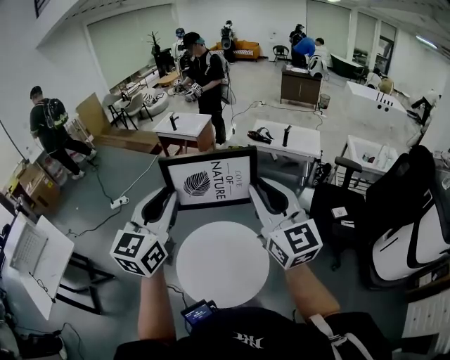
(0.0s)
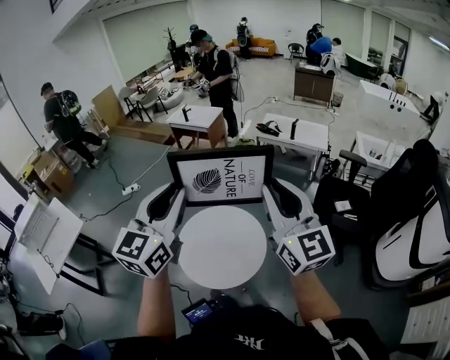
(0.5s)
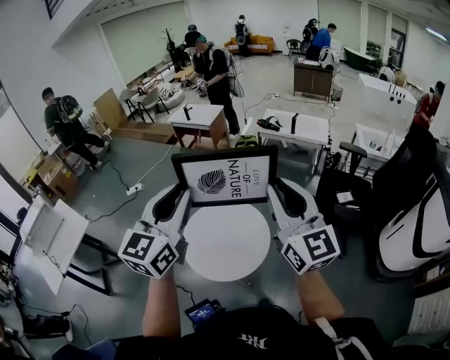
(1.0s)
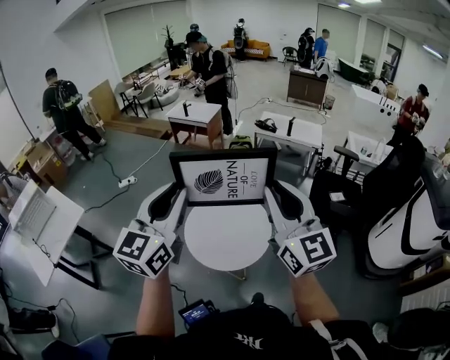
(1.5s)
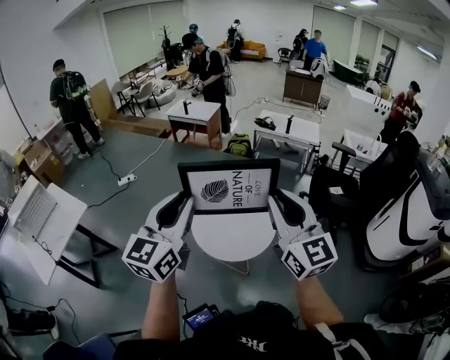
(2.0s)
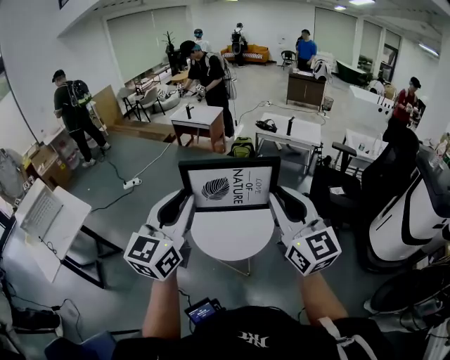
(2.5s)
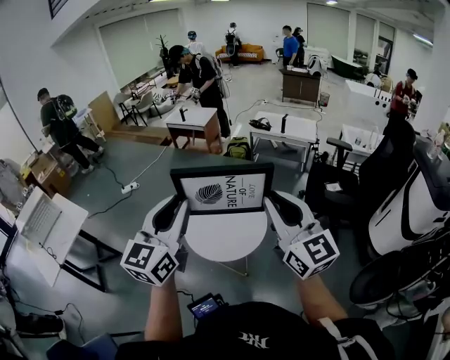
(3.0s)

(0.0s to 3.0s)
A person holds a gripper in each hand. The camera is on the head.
0.0s - 1.5s: Both grippers travel together backward, approximately 20 cm.
1.5s - 3.0s: The left gripper moves backward, roughly 10 cm. Meanwhile the right gripper moves backward and to the right, about 10 cm.

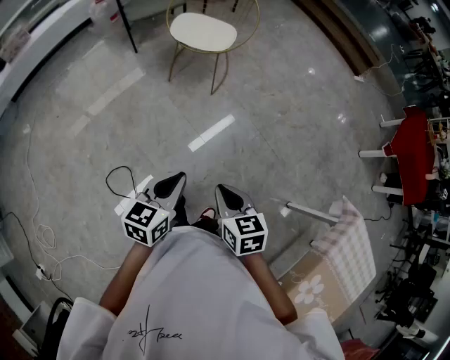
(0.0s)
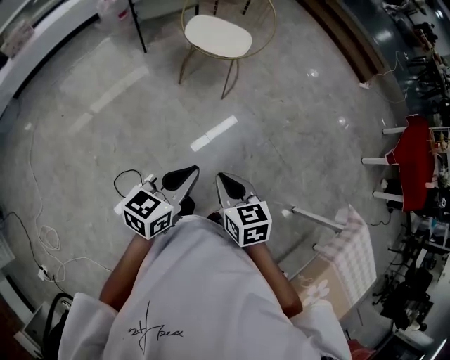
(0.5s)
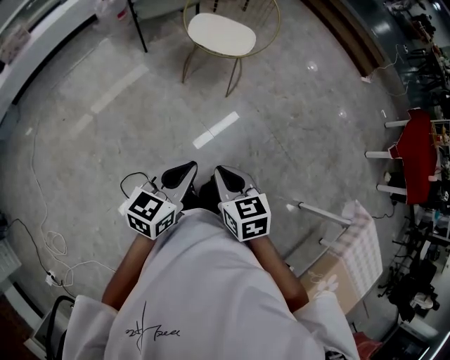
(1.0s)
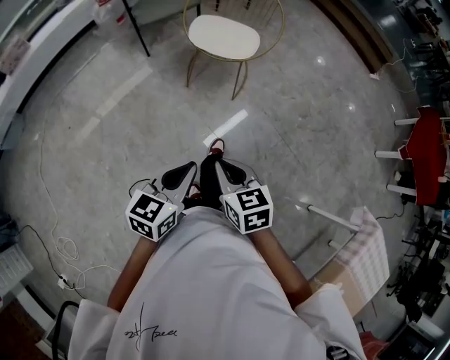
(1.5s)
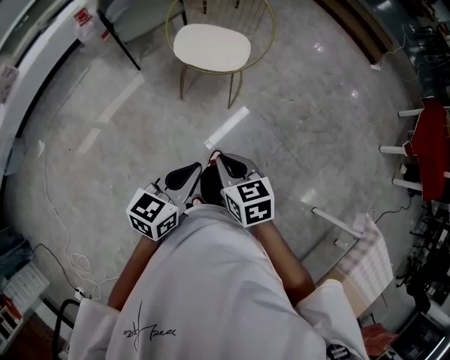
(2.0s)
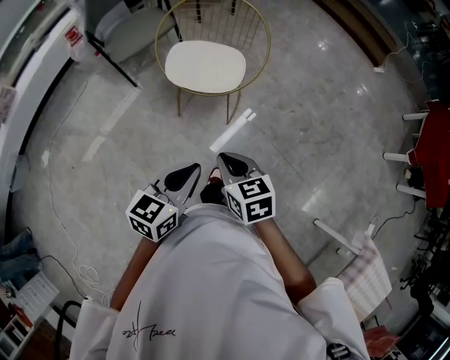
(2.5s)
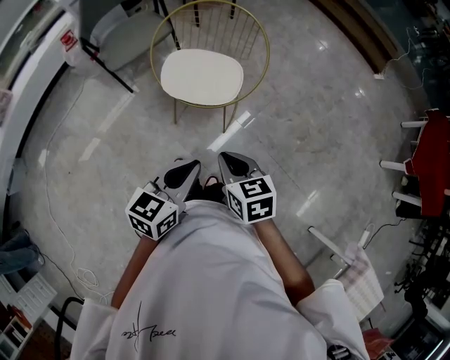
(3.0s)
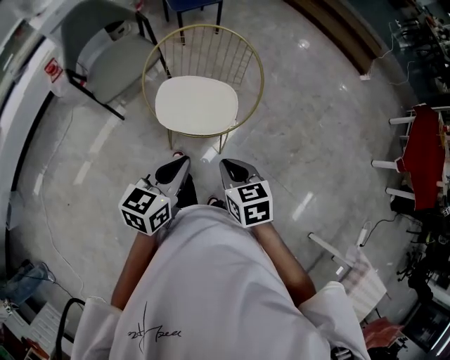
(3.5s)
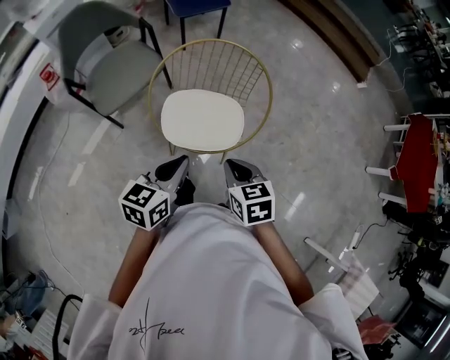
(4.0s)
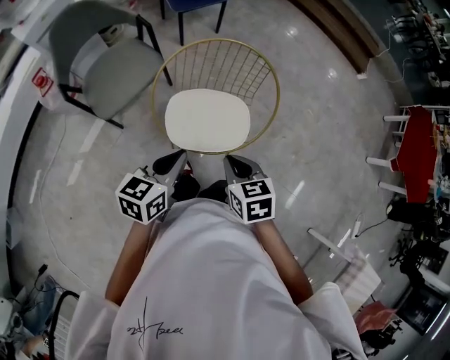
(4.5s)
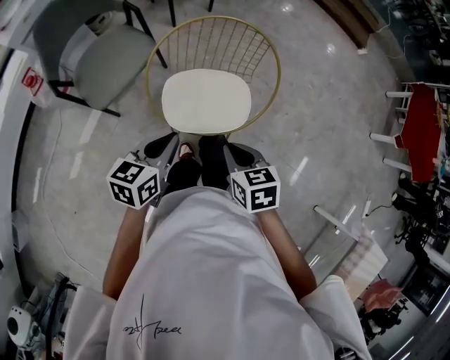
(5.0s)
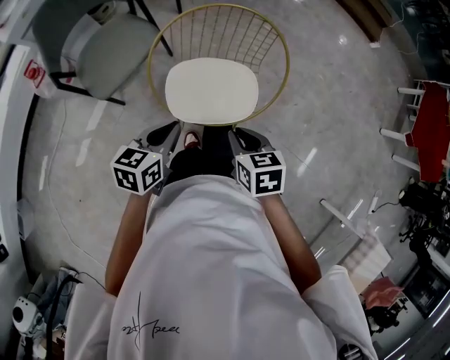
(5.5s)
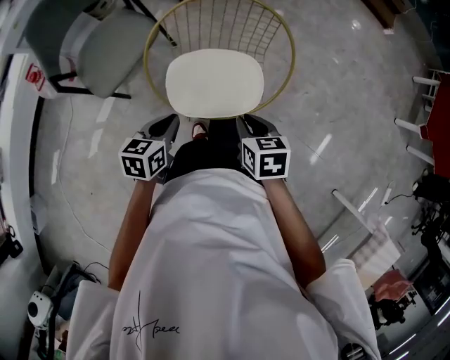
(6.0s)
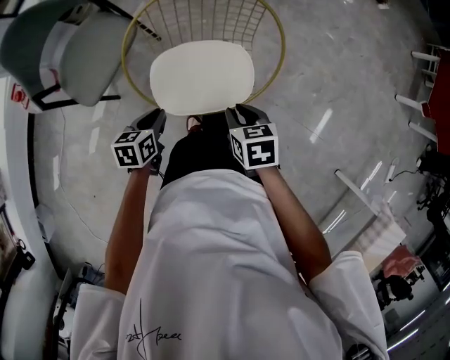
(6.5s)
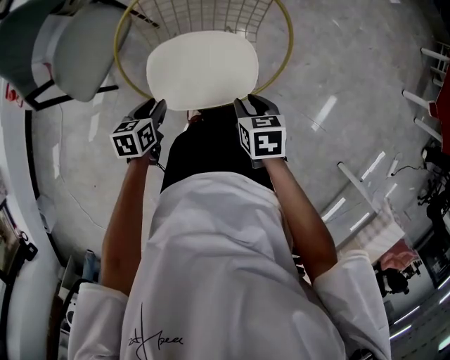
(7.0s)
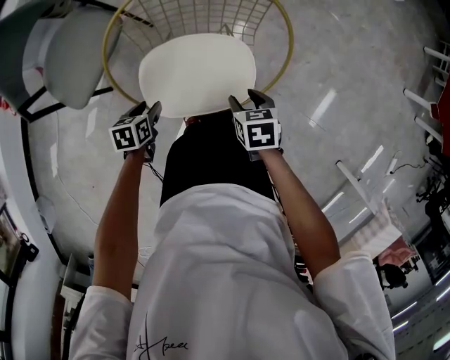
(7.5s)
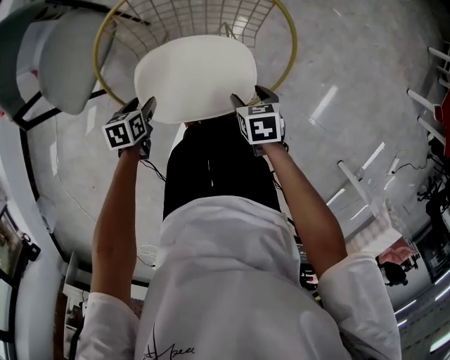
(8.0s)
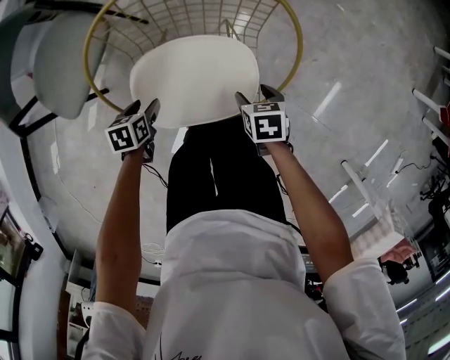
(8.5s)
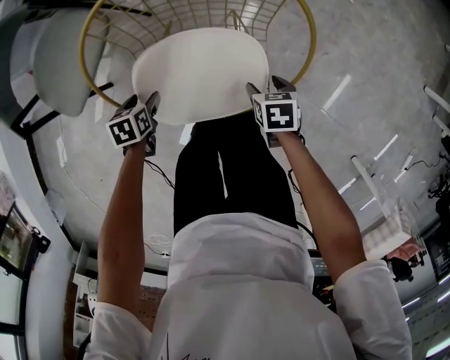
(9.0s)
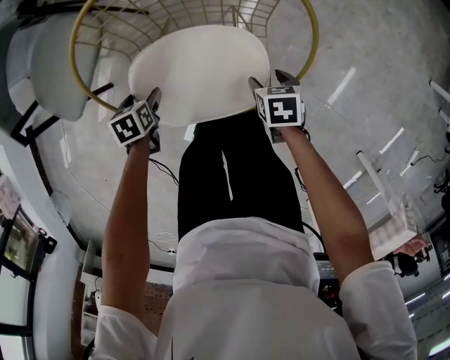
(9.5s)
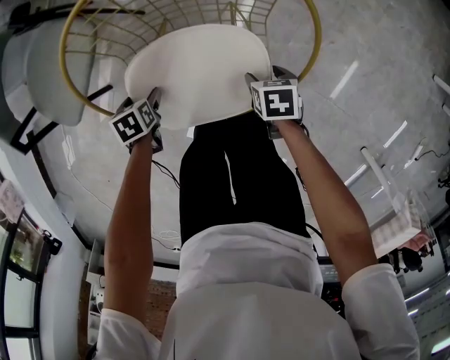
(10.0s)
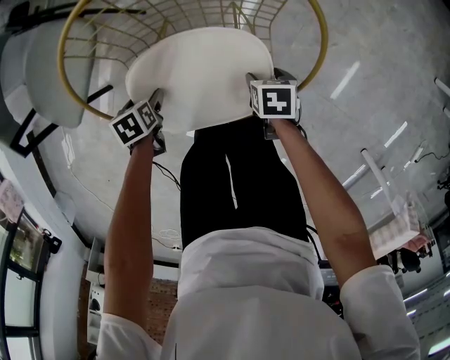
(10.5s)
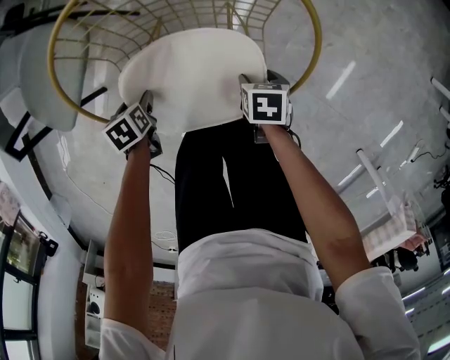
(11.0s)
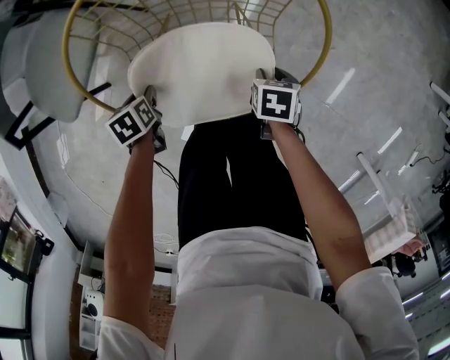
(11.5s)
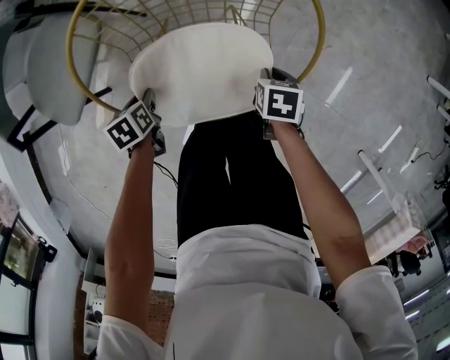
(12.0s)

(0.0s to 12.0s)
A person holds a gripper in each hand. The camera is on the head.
0.0s - 2.0s: The left gripper goes roughly 25 cm forward. The right gripper is displaced forward and to the left by roughly 35 cm.
2.0s - 4.0s: The two grippers travel together, forward, roughly 50 cm.
4.0s - 6.0s: The left gripper shifts about 20 cm downward, forward and to the left; the right gripper is displaced downward and forward by some 15 cm.
6.0s - 8.0s: Both grippers move downward and forward, roughly 25 cm. The right gripper opens, while the left gripper rotates roughly 30 degrees, and opens.
8.0s - 10.0s: The two grippers go about 10 cm downward. The left gripper opens up.
10.0s - 12.0s: The left gripper closes; the right gripper closes up.

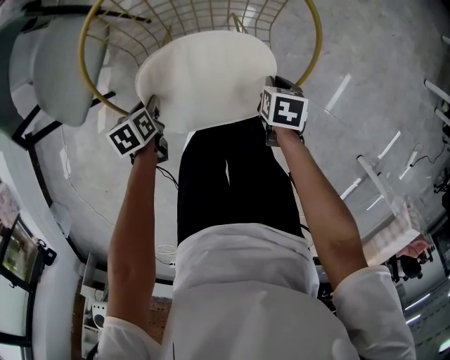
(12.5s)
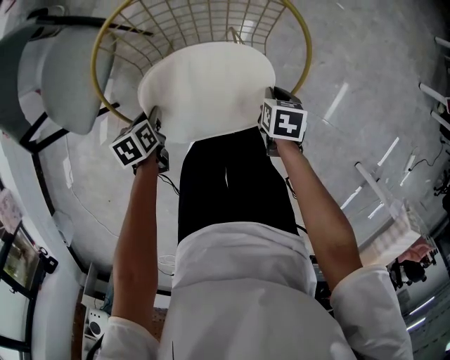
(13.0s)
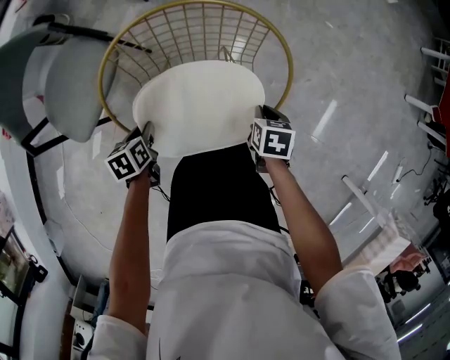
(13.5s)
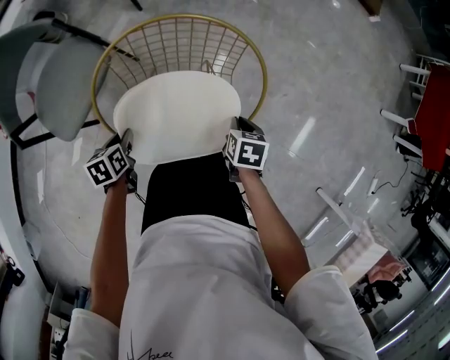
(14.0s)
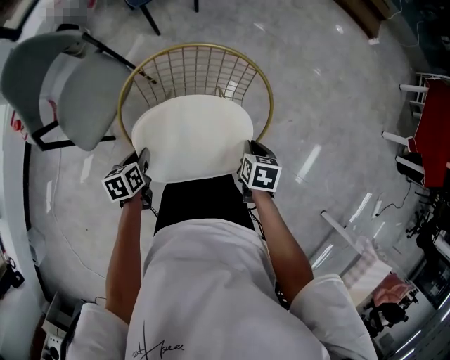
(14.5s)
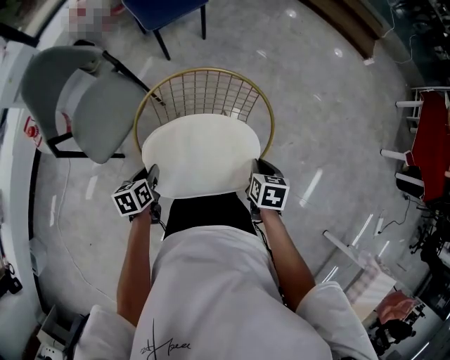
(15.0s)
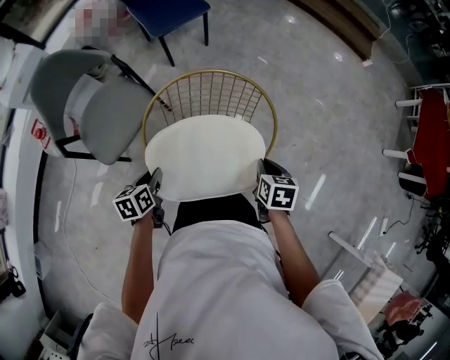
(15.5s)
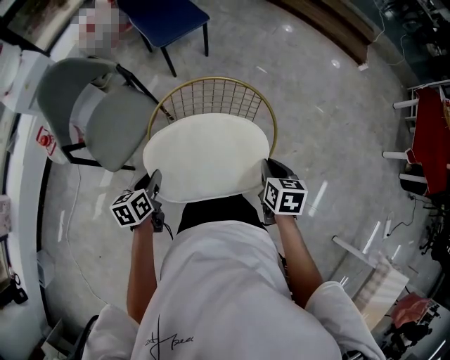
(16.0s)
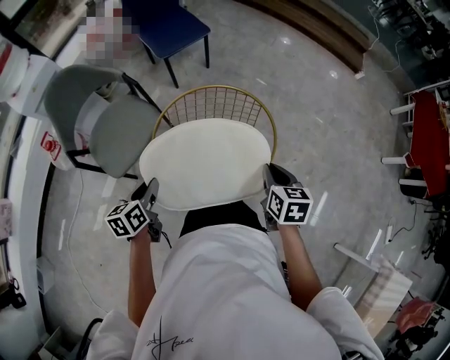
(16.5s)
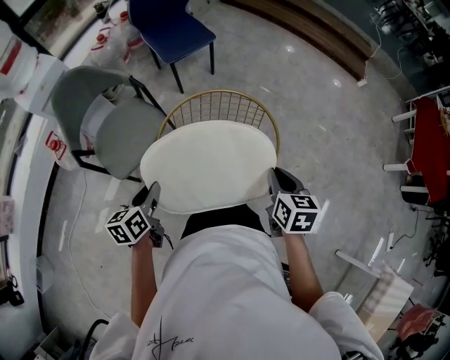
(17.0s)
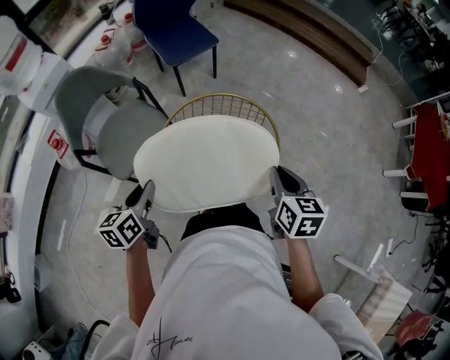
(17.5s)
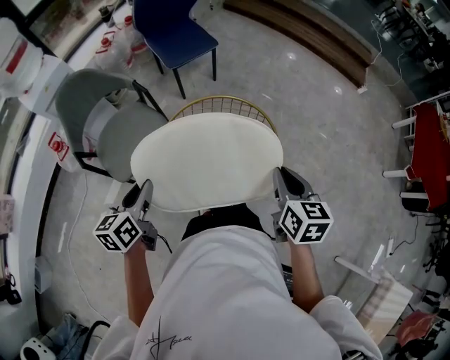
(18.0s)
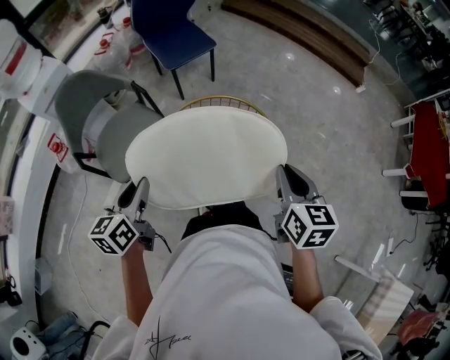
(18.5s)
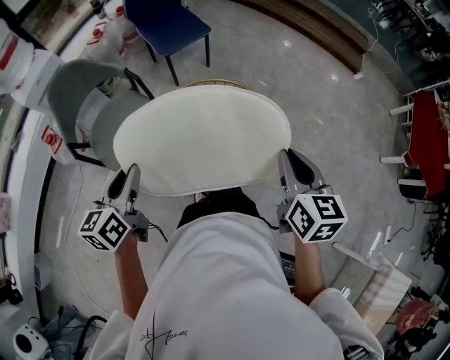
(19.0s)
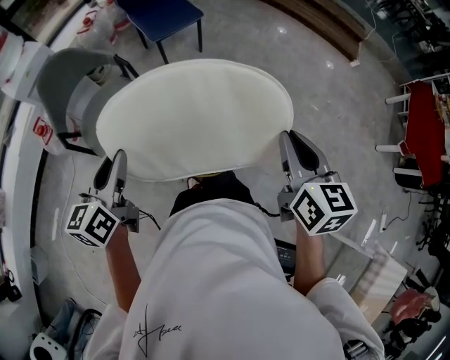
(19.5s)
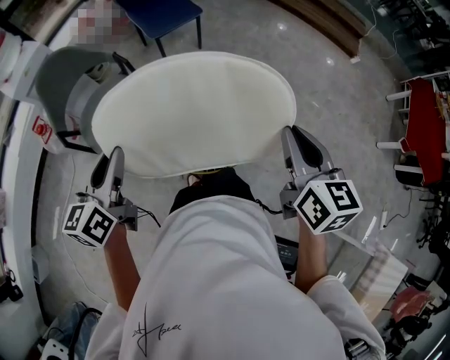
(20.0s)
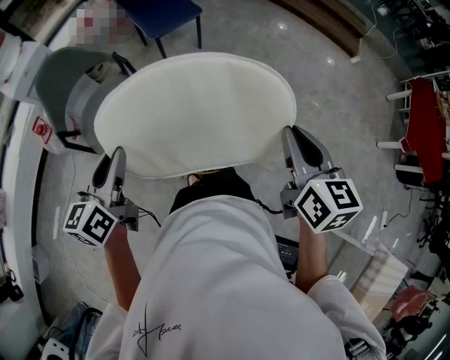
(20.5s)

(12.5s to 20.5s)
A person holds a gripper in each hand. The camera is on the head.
12.5s - 14.5s: The grippers both shift upward by roughly 15 cm.
14.5s - 16.5s: Both grippers move upward, approximately 20 cm. The right gripper swivels roughly 20 degrees, while the left gripper turns by about 20 degrees.
16.5s - 18.5s: Both grippers move upward, roughly 15 cm.
18.5s - 20.5s: The right gripper changes place by roughly 5 cm.

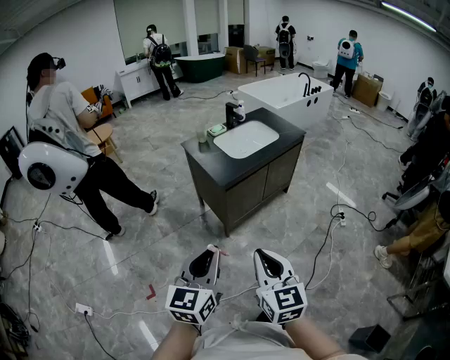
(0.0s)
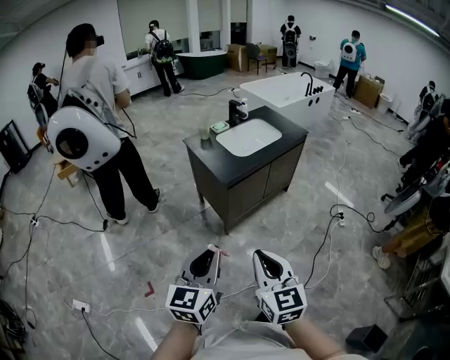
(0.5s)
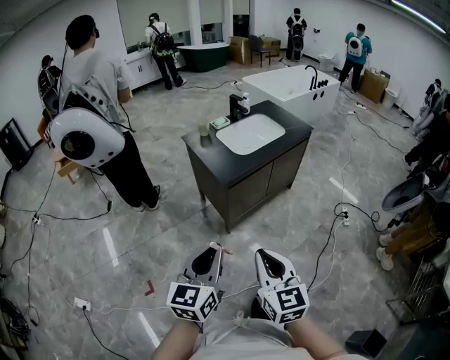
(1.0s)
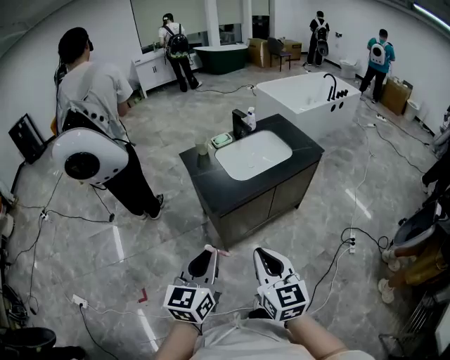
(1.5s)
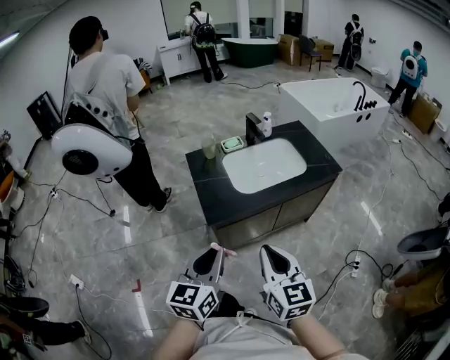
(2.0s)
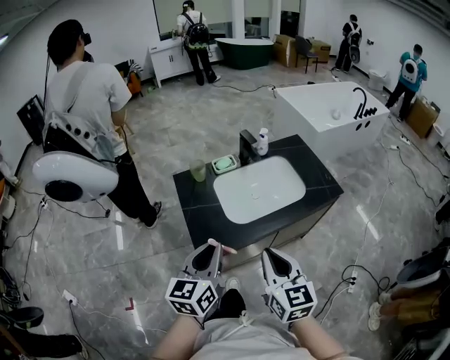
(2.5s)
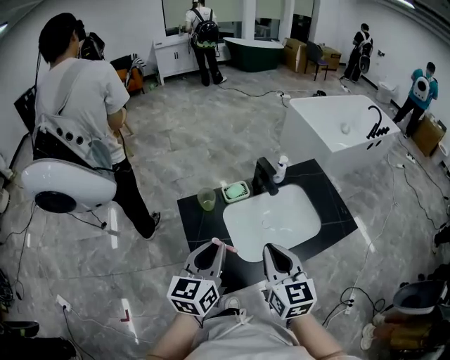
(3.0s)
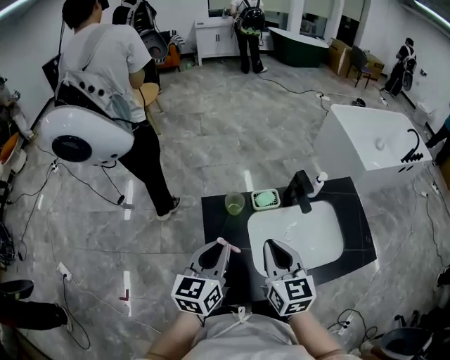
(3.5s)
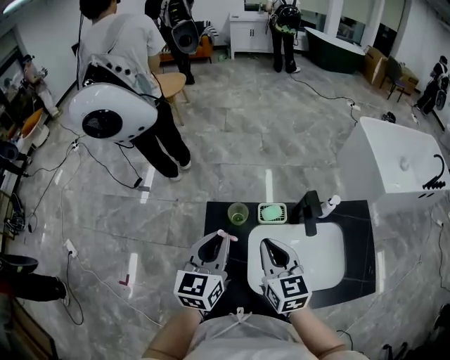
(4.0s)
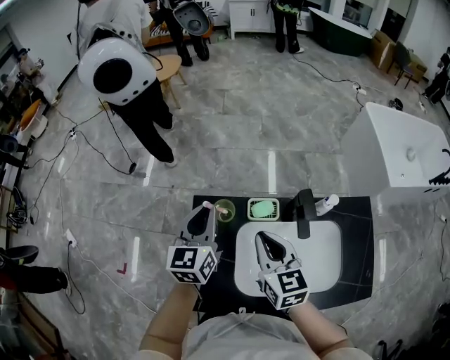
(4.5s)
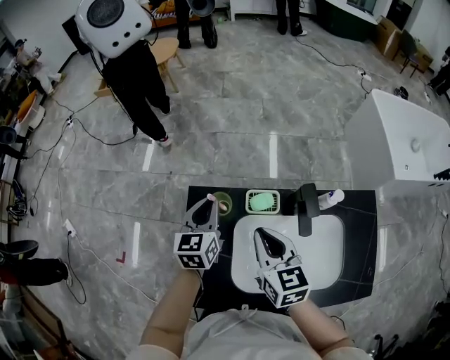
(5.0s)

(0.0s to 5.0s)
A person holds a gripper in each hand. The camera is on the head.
0.0s - 2.5s: The two grippers travel together, forward, approximately 50 cm.
2.5s - 5.0s: The right gripper moves some 40 cm, and swivels roughly 30 degrees. Meanwhile the left gripper moves about 40 cm, and changes its angle by some 30 degrees.
